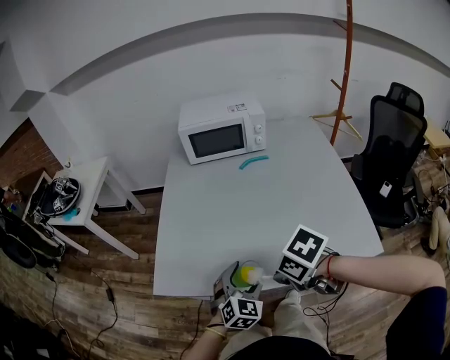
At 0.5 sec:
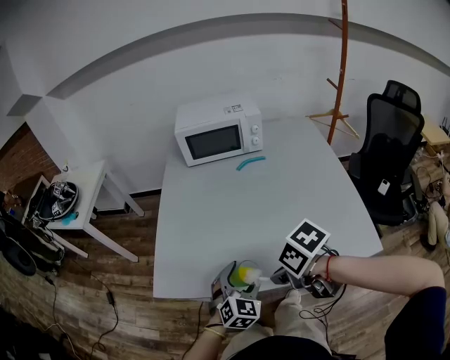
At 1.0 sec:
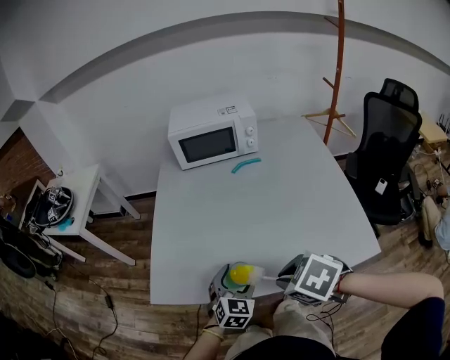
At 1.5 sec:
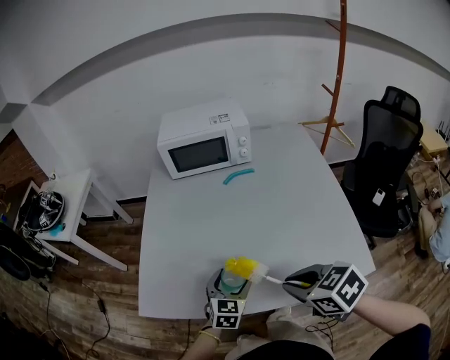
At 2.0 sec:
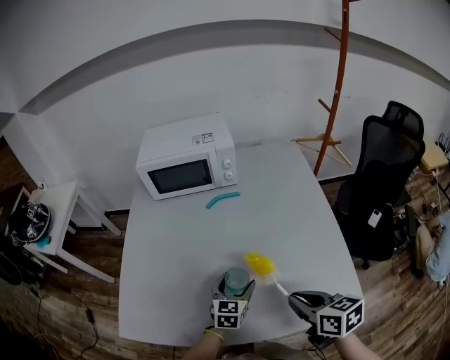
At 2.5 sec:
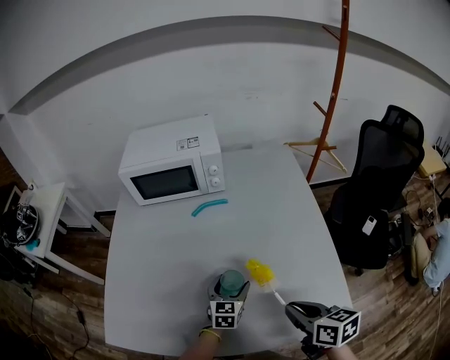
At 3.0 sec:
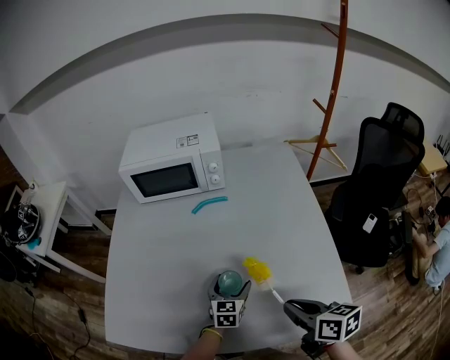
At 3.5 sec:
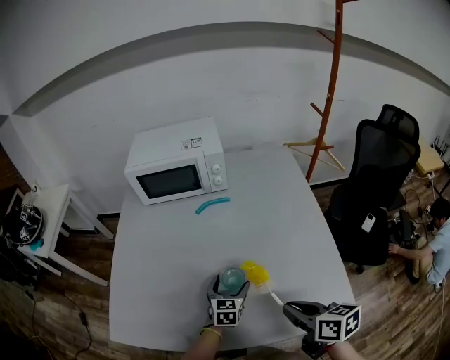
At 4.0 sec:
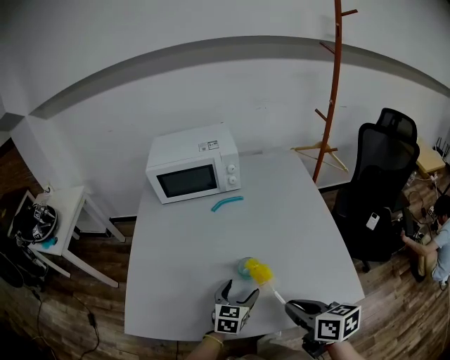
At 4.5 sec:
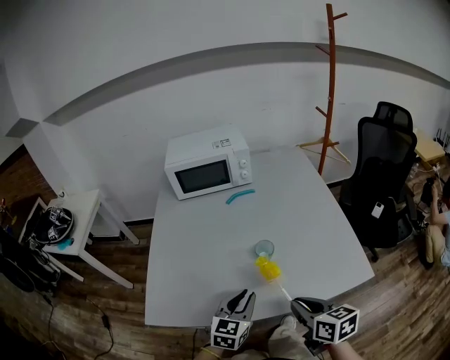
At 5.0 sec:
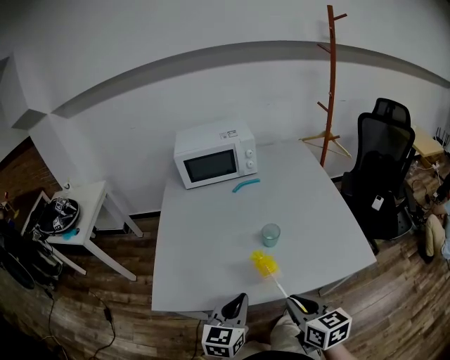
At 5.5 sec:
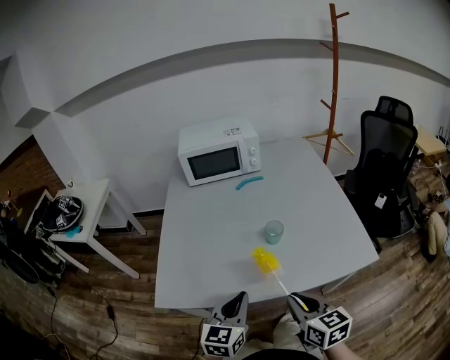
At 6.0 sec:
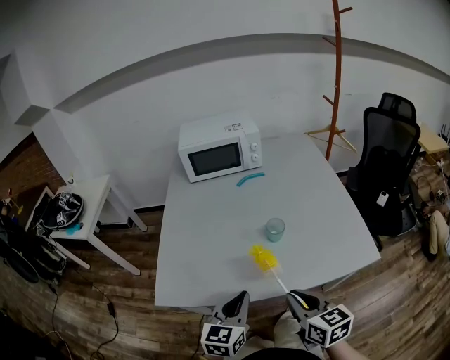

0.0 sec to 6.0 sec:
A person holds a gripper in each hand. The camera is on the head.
0.0 sec to 2.0 sec: The left gripper shifts by approximately 25 cm, and turns by about 30 degrees. Meanwhile the right gripper changes place by approximately 20 cm, and angles its fingers upward, by roughly 30 degrees.
2.0 sec to 4.0 sec: The left gripper moves backward, about 5 cm; the right gripper changes place by roughly 5 cm.
4.0 sec to 6.0 sec: The left gripper shifts approximately 25 cm backward, to the left and upward, and closes its fingers; the right gripper heads backward and to the left, covering some 15 cm.

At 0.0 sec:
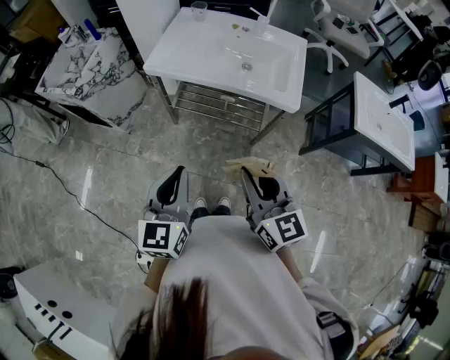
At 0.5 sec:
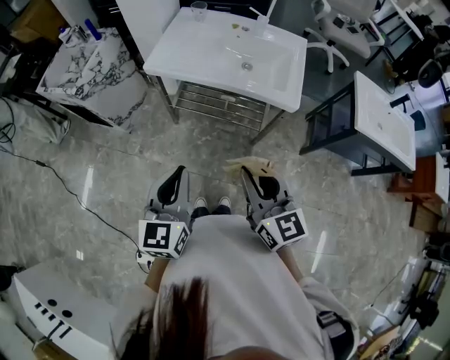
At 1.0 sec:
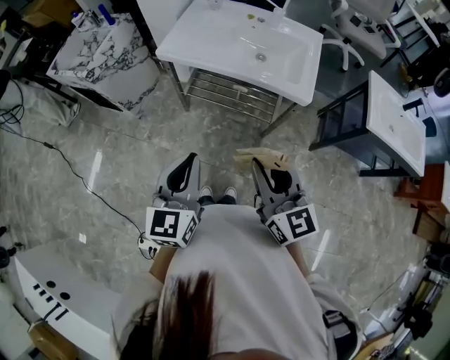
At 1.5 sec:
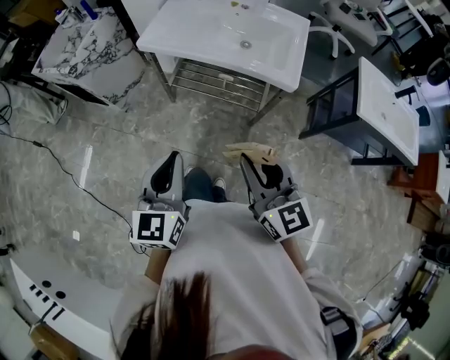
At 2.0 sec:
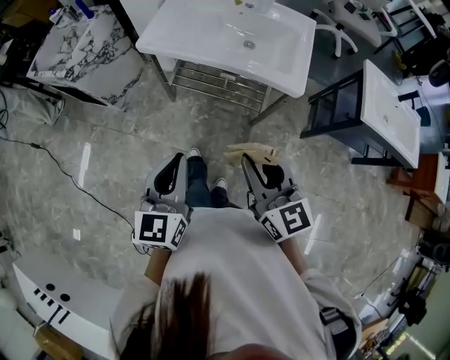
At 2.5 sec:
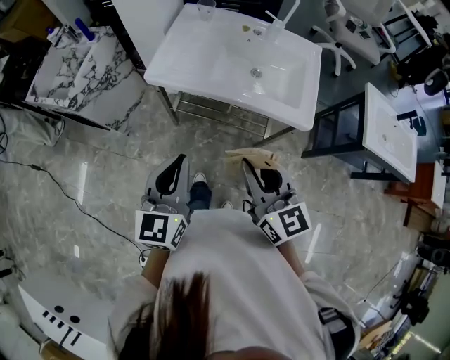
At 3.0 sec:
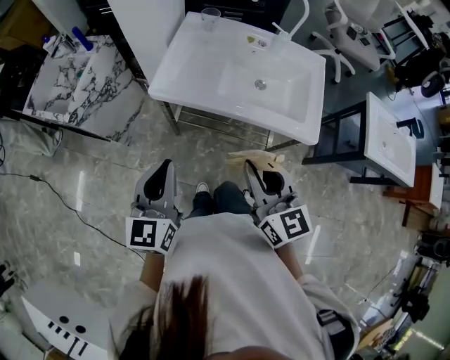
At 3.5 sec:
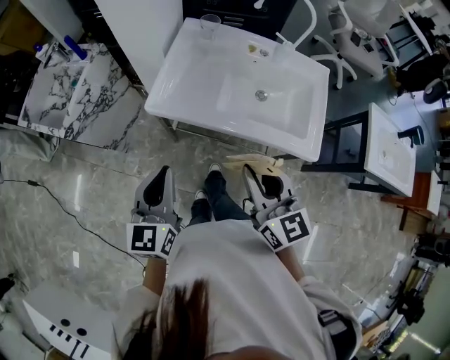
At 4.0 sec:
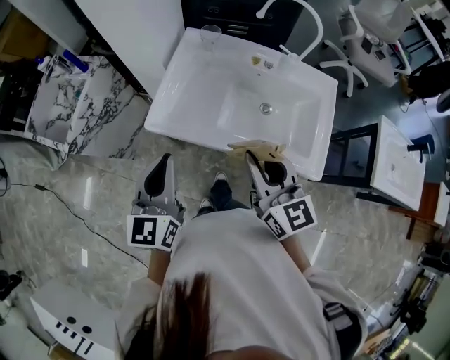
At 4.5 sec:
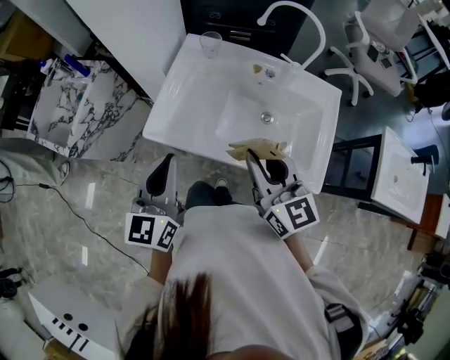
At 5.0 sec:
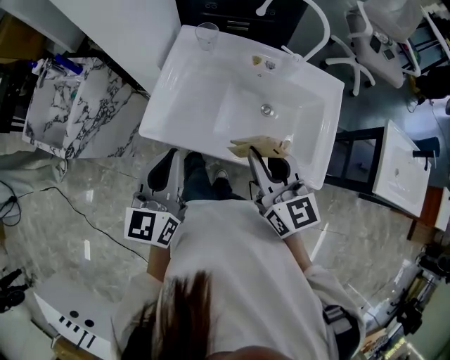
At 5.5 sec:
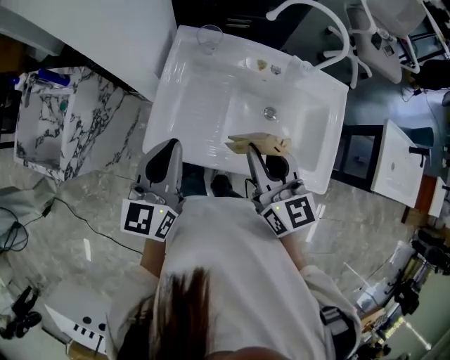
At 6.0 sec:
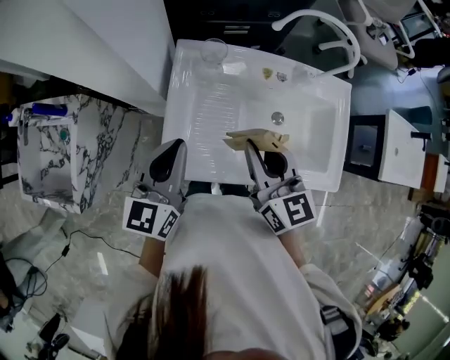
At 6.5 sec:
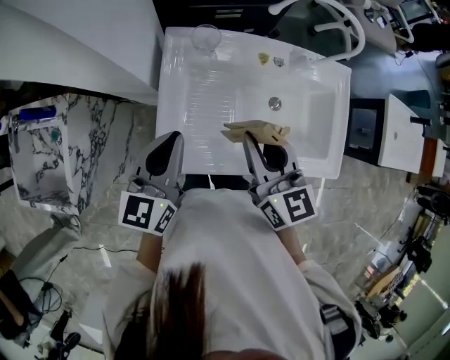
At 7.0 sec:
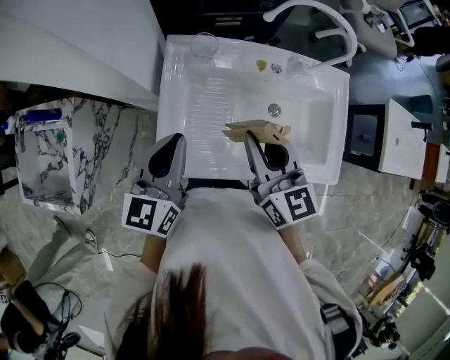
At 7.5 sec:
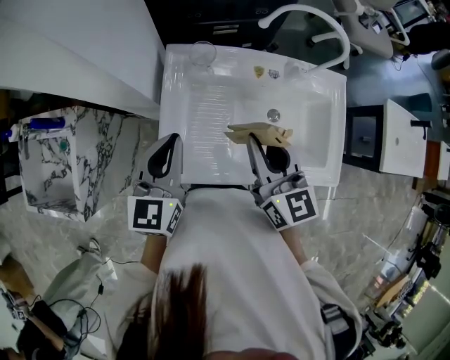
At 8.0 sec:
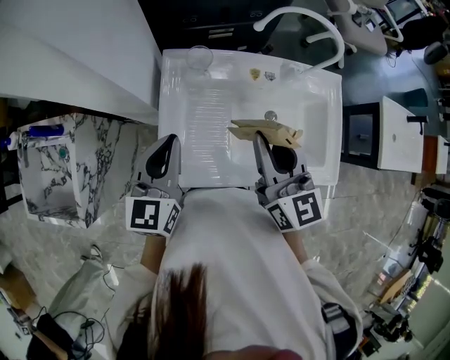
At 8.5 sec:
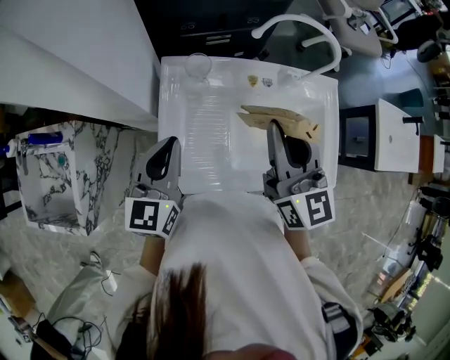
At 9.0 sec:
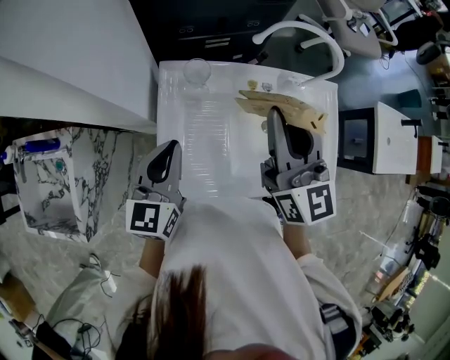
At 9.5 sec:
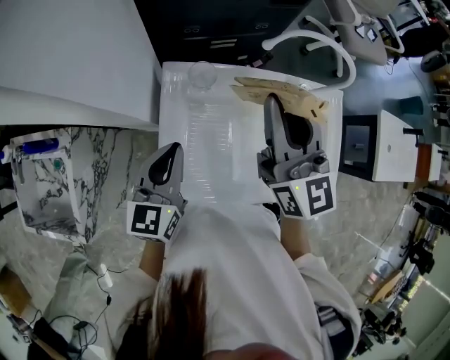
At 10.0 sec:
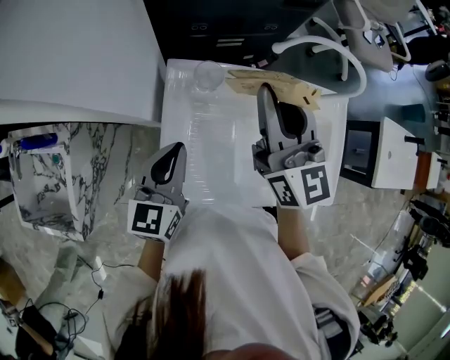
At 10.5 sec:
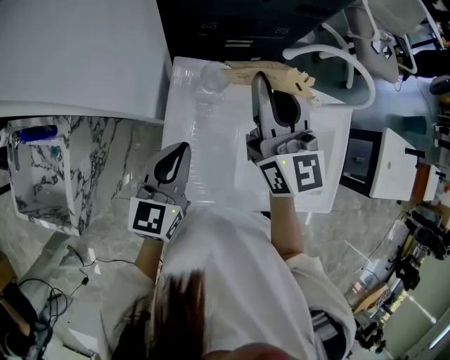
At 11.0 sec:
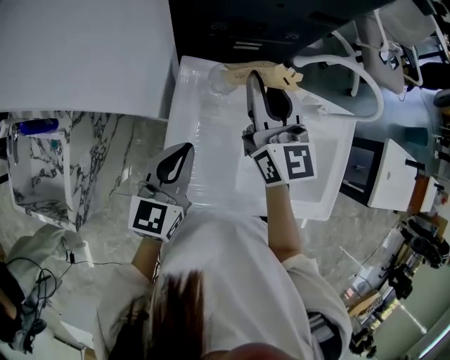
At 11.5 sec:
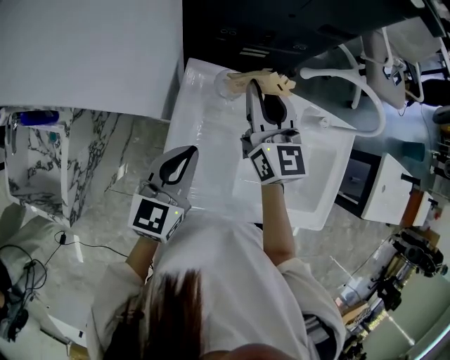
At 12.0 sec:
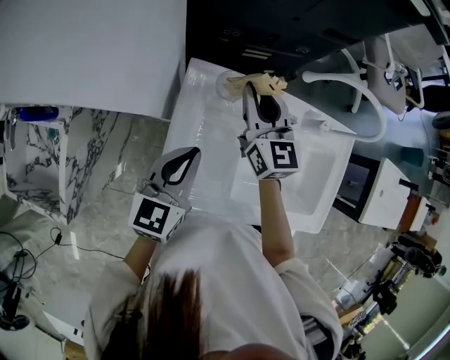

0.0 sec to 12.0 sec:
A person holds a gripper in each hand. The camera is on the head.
0.0 sec to 2.0 sec: There are only small adjustments of the grippers.
2.0 sec to 4.0 sec: The two grippers go roughly 35 cm forward.
4.0 sec to 6.0 sec: Both grippers travel together forward, roughly 20 cm. The left gripper rotates approximately 20 degrees.
6.0 sec to 8.0 sec: The right gripper ends up approximately 5 cm from where it was.
8.0 sec to 10.0 sec: The left gripper moves forward, about 5 cm. The right gripper travels forward by some 15 cm.
10.0 sec to 12.0 sec: The right gripper goes about 15 cm downward and forward.

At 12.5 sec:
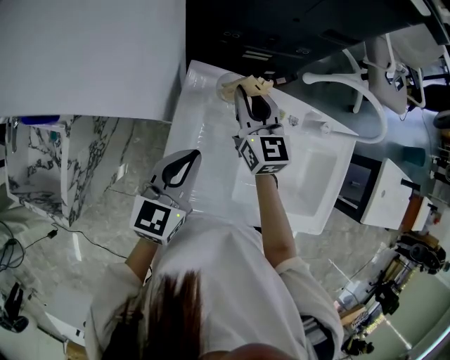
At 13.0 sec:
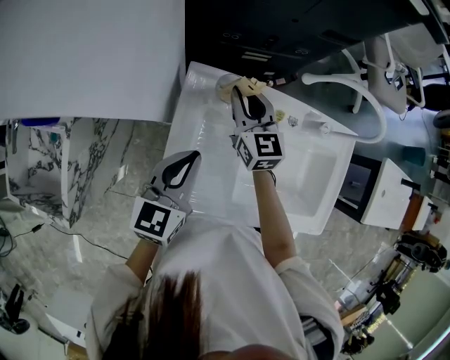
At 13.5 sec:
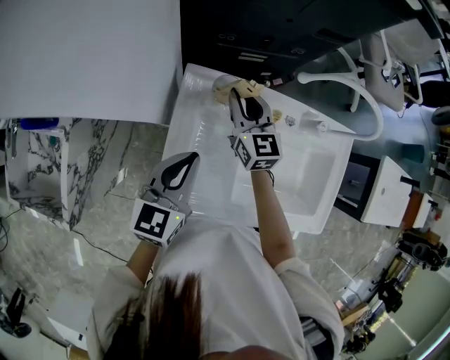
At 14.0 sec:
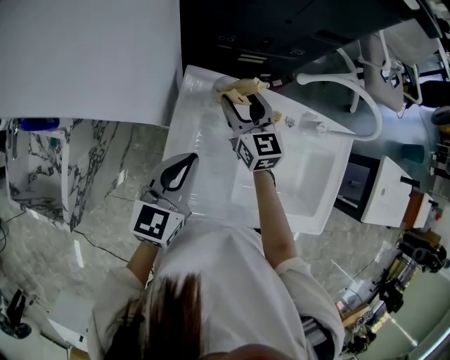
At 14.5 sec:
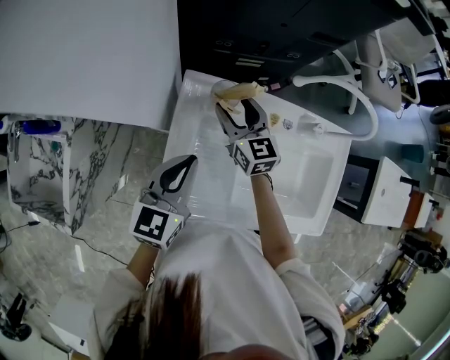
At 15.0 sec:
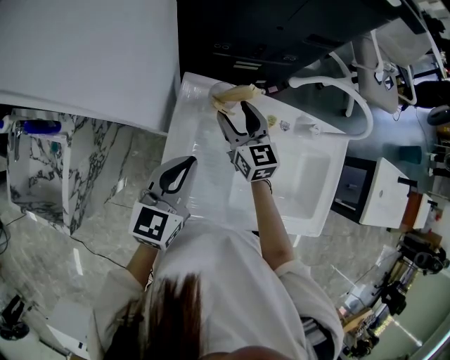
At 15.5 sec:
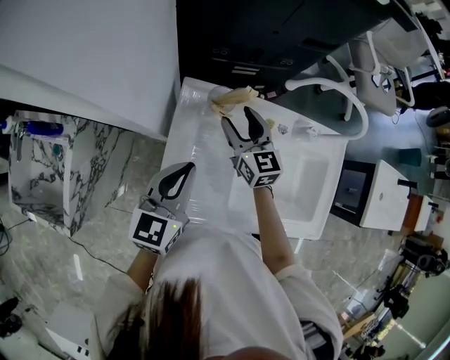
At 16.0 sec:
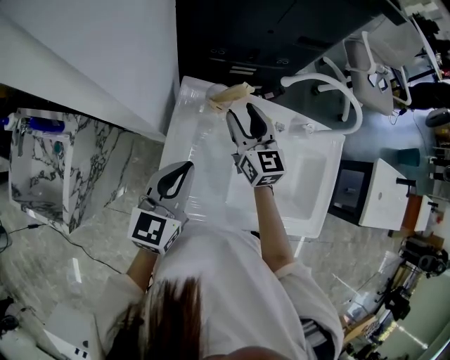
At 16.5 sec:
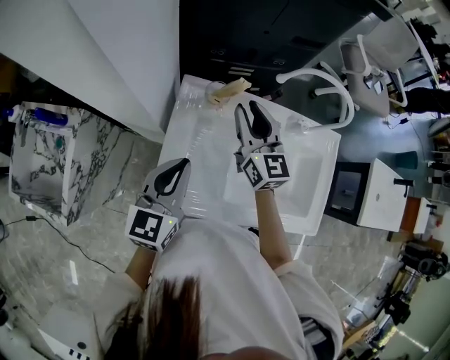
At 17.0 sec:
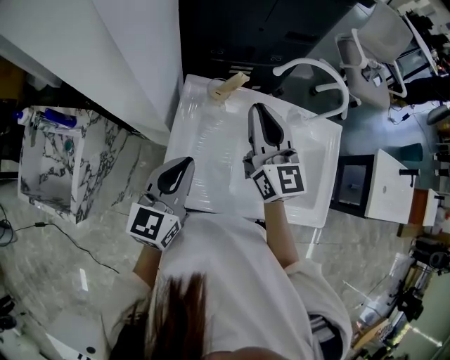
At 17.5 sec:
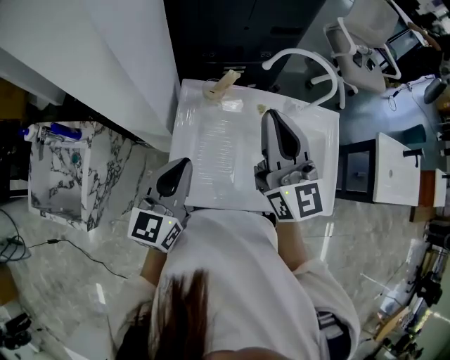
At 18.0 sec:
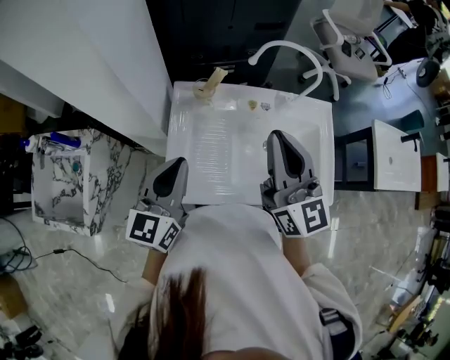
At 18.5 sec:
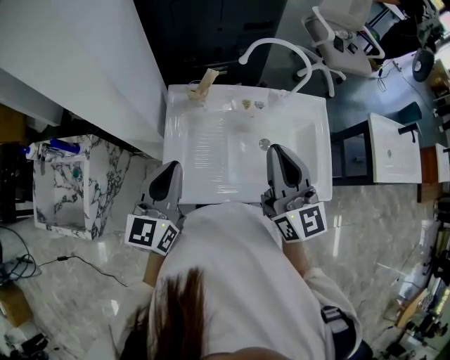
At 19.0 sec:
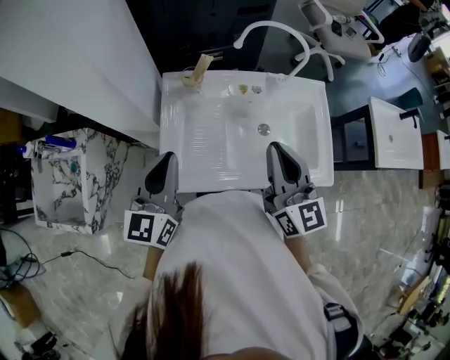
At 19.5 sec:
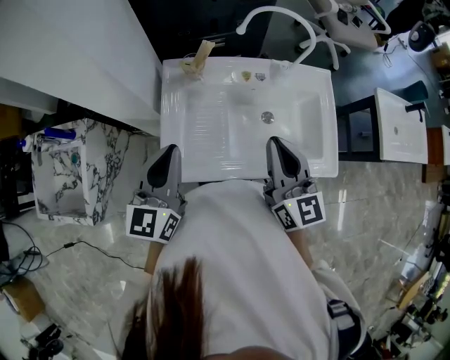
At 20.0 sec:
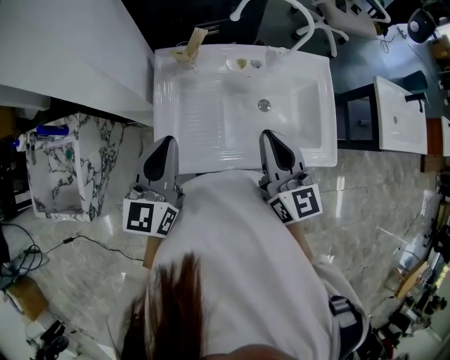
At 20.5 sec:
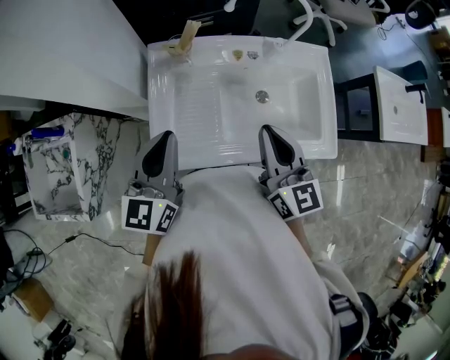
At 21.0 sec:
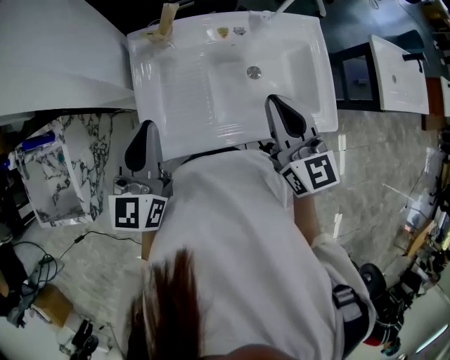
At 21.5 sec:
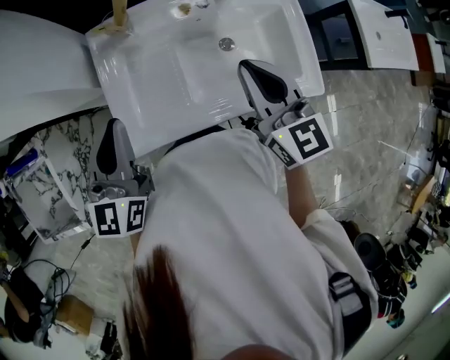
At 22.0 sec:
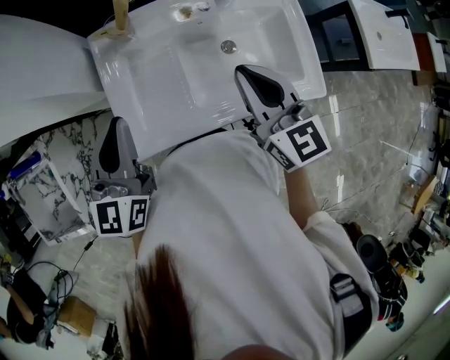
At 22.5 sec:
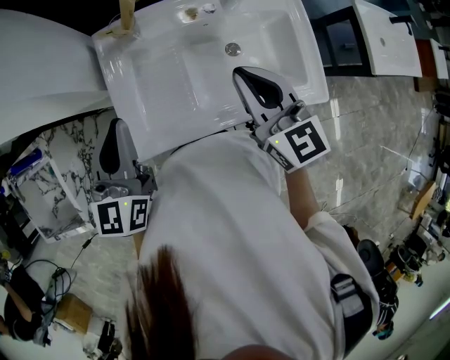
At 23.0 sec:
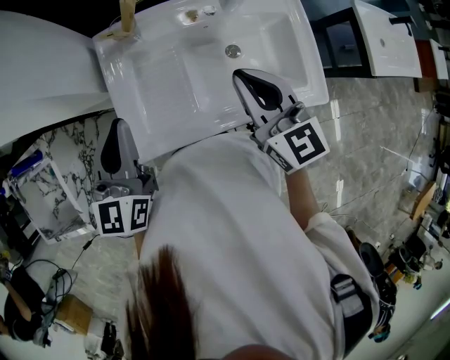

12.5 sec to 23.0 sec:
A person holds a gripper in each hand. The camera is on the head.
12.5 sec to 14.5 sec: The right gripper opens.
14.5 sec to 16.5 sec: The left gripper moves backward, about 5 cm. Meanwhile the right gripper shifts roughly 15 cm upward and backward, and closes its fingers.
16.5 sec to 19.0 sec: The right gripper is displaced backward, to the right and upward by roughly 25 cm, and closes. Meanwhile the left gripper goes approximately 10 cm backward and upward.
19.0 sec to 21.0 sec: The right gripper is displaced downward by some 5 cm.
21.0 sec to 23.0 sec: The grippers make only small movements.
